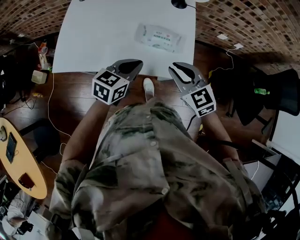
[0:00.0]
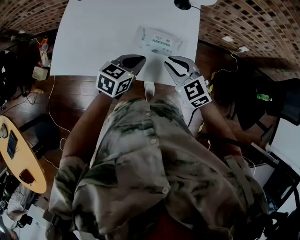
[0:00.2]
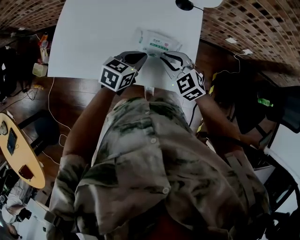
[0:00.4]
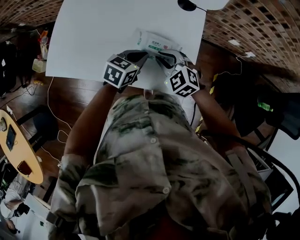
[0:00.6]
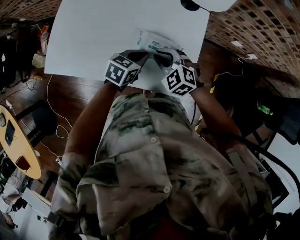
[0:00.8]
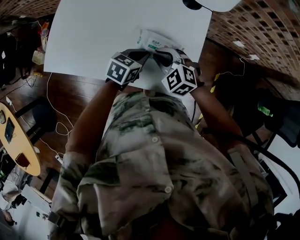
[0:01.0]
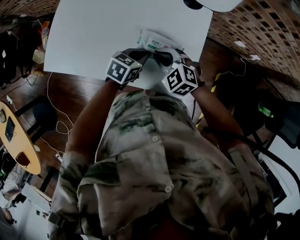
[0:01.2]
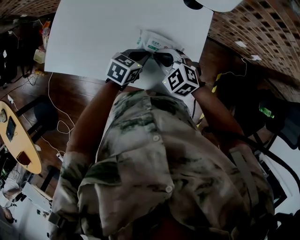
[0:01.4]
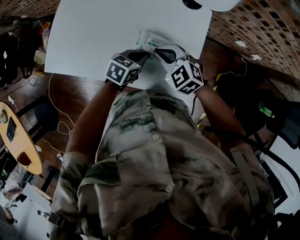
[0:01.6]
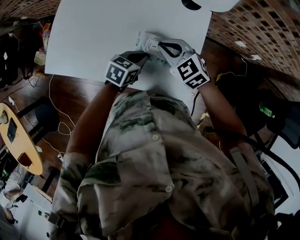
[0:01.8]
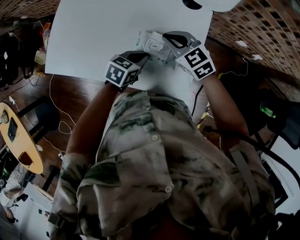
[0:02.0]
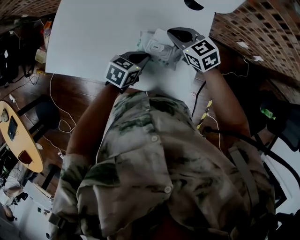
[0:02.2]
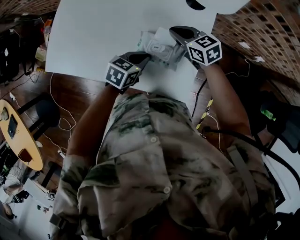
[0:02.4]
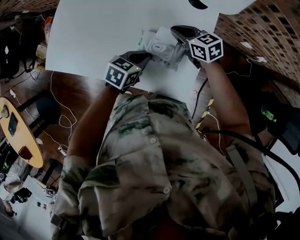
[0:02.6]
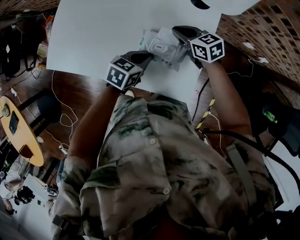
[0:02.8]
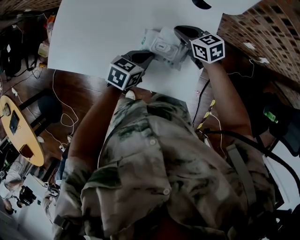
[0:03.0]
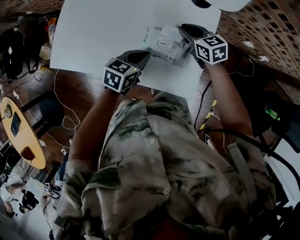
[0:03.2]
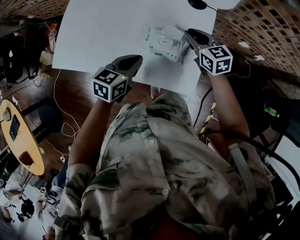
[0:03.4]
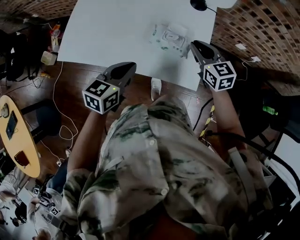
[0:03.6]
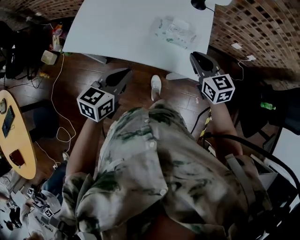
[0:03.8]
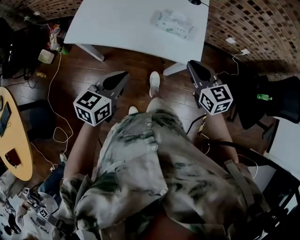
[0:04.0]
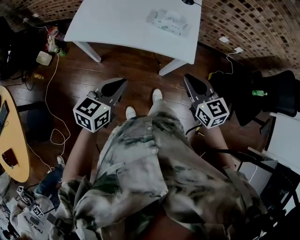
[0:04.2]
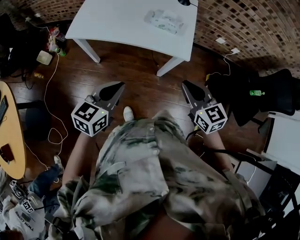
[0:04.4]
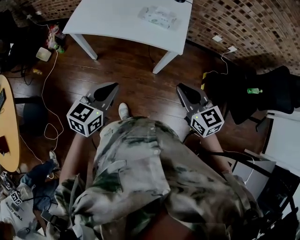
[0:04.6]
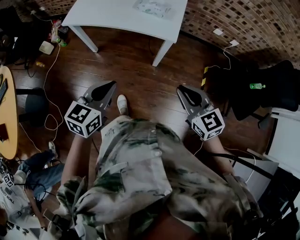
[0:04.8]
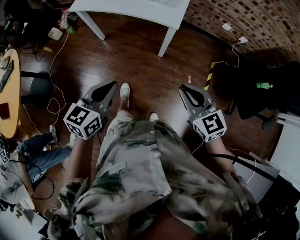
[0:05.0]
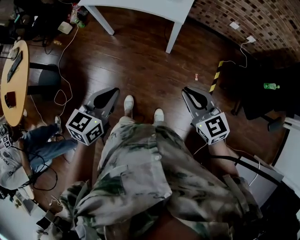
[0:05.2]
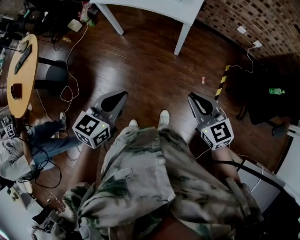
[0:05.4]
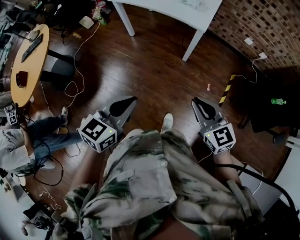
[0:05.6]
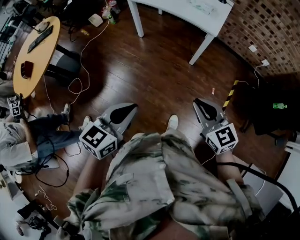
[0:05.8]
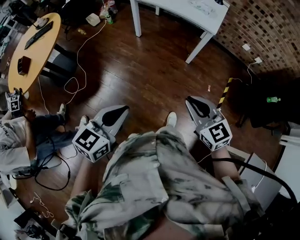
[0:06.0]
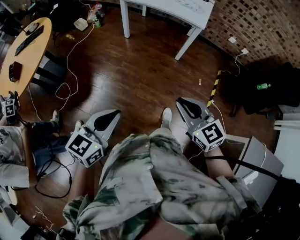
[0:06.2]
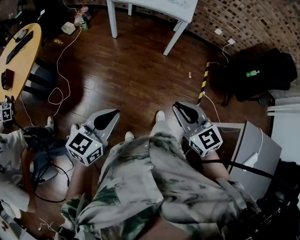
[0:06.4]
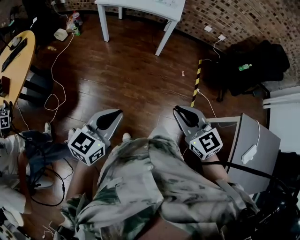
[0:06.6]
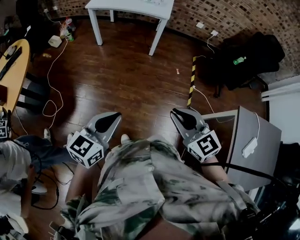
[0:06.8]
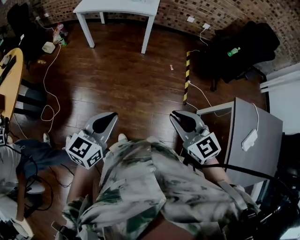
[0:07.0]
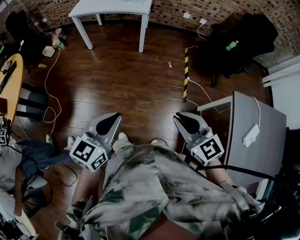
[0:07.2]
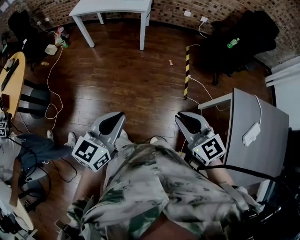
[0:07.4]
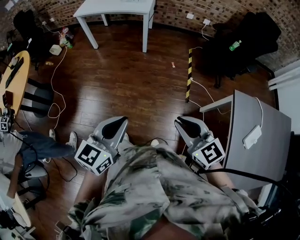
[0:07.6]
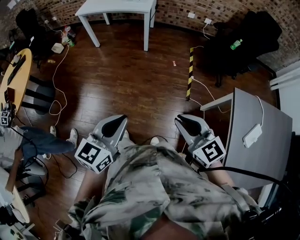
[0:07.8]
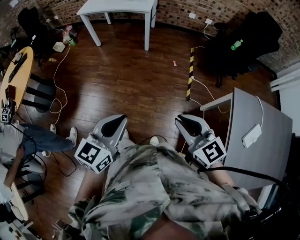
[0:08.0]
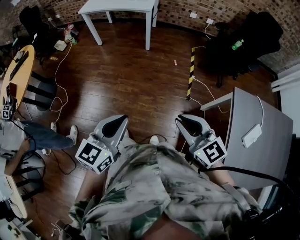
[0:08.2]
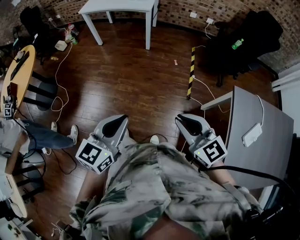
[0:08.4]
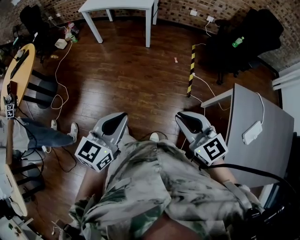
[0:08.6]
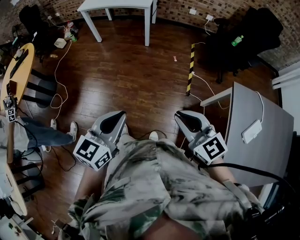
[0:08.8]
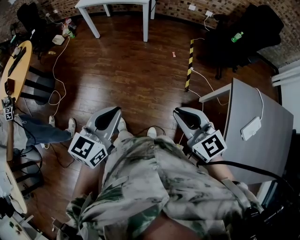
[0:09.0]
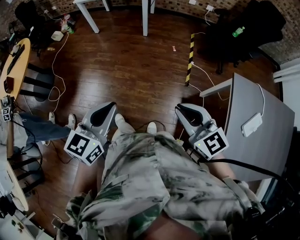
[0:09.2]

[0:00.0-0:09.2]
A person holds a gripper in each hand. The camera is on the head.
0:00.0 to 0:01.6: The left gripper heads downward and forward, covering roughly 20 cm; the right gripper moves forward and downward, roughly 20 cm, and rotates about 30 degrees.
0:01.6 to 0:03.0: The right gripper goes approximately 10 cm forward, and rotates approximately 40 degrees.
0:03.0 to 0:04.6: The pair of grippers is taken backward, roughly 50 cm. Both grippers move upward, approximately 20 cm. The right gripper swivels about 30 degrees; the left gripper changes its angle by about 30 degrees.
0:04.6 to 0:06.2: The pair of grippers is taken backward, about 50 cm.
0:06.2 to 0:07.6: The right gripper goes roughly 35 cm backward and to the right. Meanwhile the left gripper shifts approximately 30 cm to the right and backward.
0:07.6 to 0:09.2: The right gripper ends up roughly 5 cm from where it was.

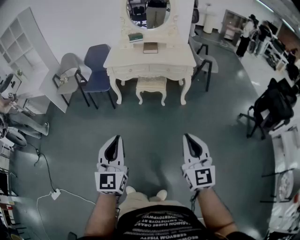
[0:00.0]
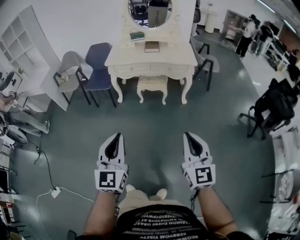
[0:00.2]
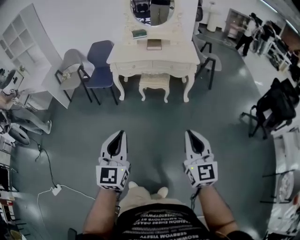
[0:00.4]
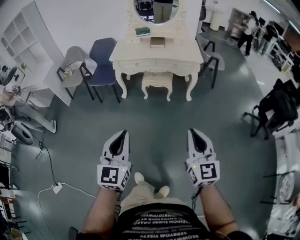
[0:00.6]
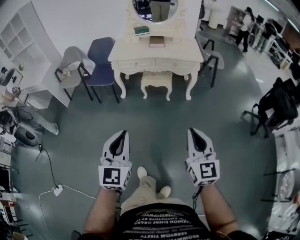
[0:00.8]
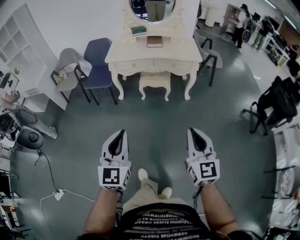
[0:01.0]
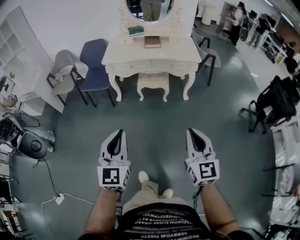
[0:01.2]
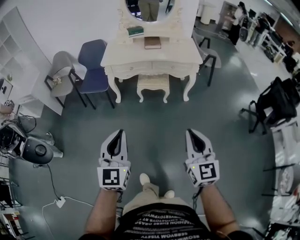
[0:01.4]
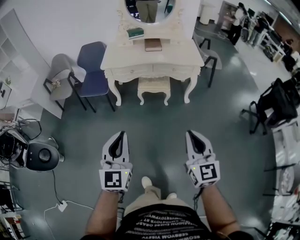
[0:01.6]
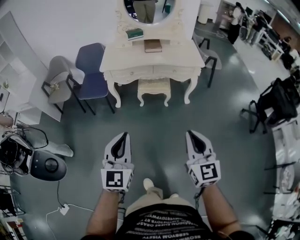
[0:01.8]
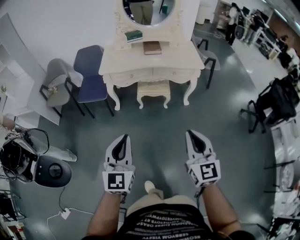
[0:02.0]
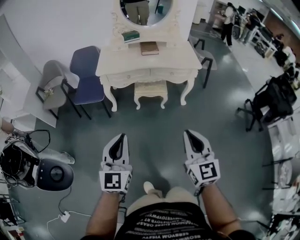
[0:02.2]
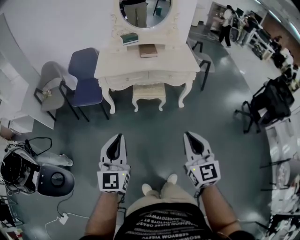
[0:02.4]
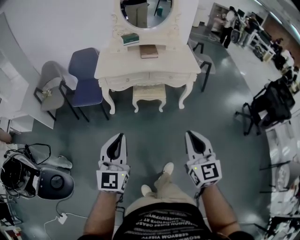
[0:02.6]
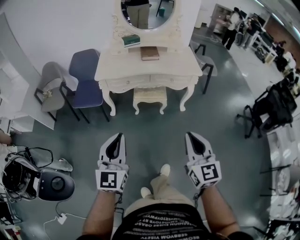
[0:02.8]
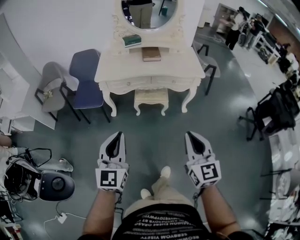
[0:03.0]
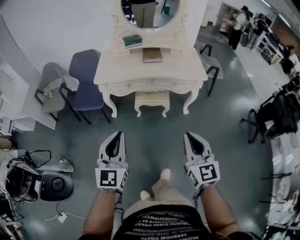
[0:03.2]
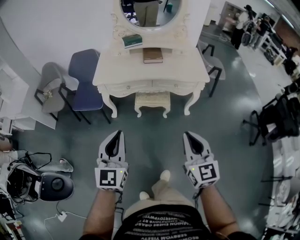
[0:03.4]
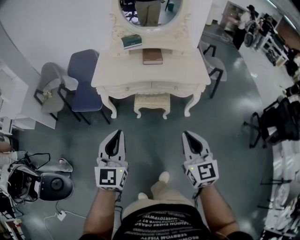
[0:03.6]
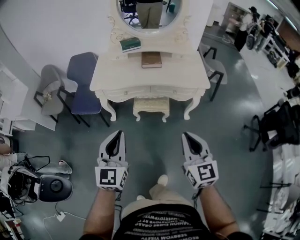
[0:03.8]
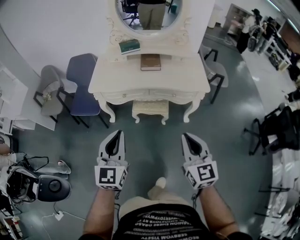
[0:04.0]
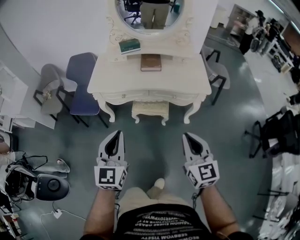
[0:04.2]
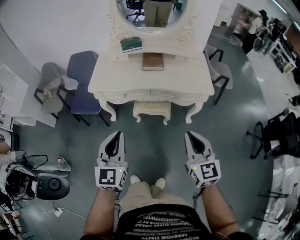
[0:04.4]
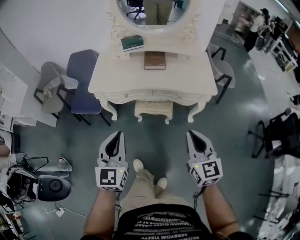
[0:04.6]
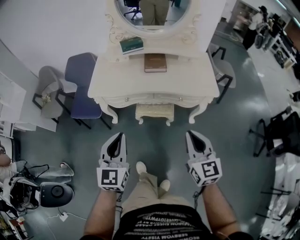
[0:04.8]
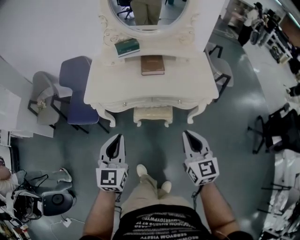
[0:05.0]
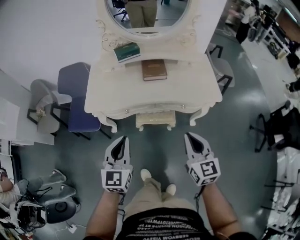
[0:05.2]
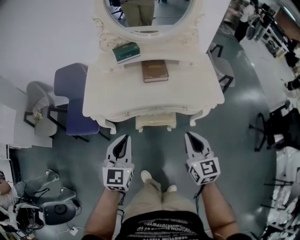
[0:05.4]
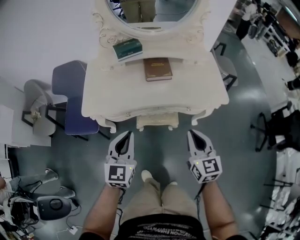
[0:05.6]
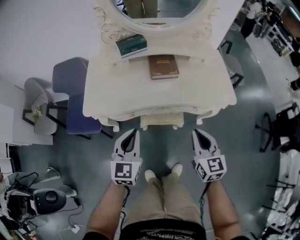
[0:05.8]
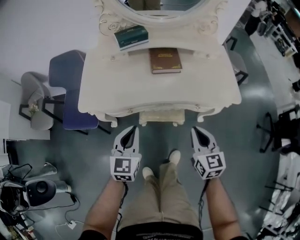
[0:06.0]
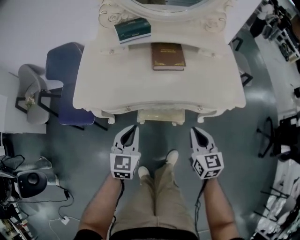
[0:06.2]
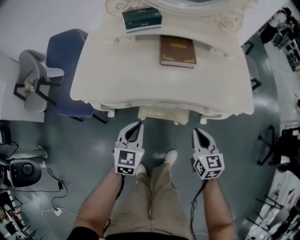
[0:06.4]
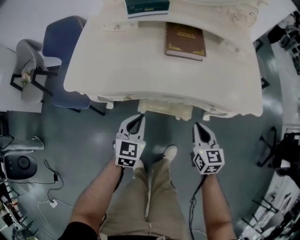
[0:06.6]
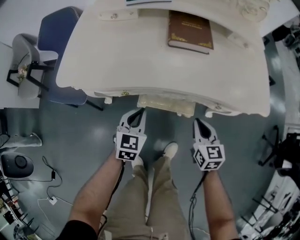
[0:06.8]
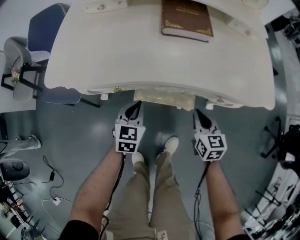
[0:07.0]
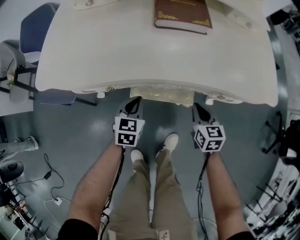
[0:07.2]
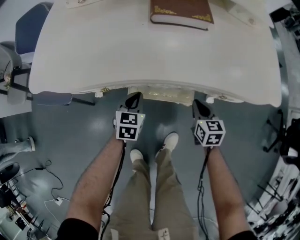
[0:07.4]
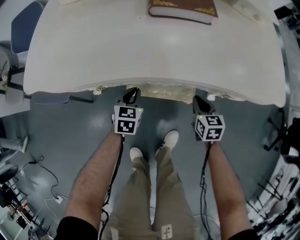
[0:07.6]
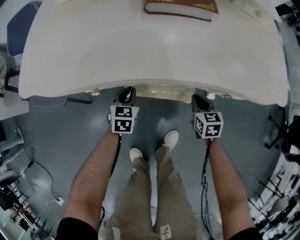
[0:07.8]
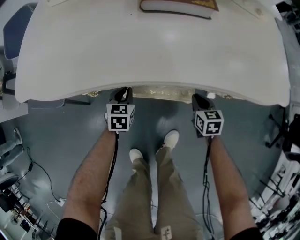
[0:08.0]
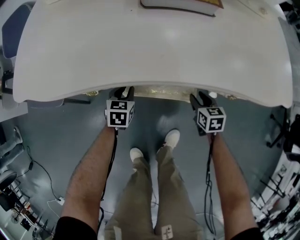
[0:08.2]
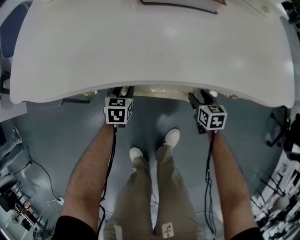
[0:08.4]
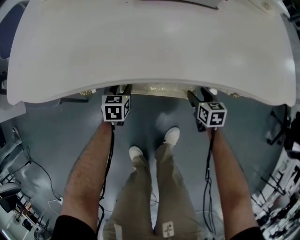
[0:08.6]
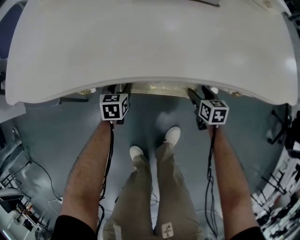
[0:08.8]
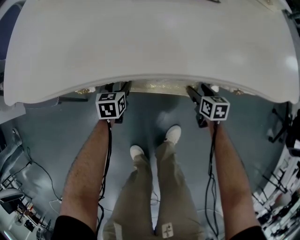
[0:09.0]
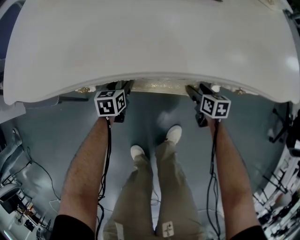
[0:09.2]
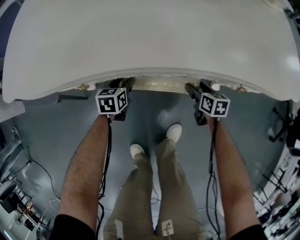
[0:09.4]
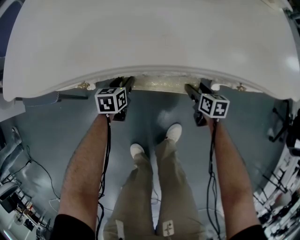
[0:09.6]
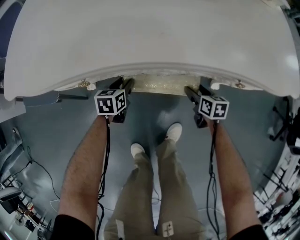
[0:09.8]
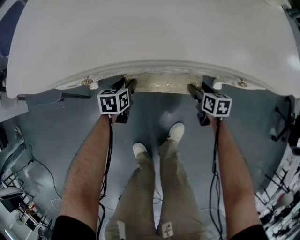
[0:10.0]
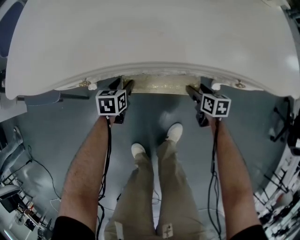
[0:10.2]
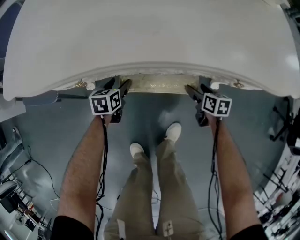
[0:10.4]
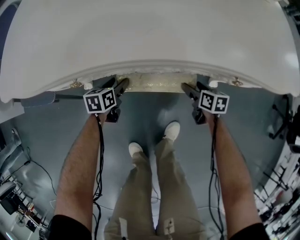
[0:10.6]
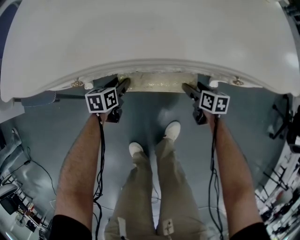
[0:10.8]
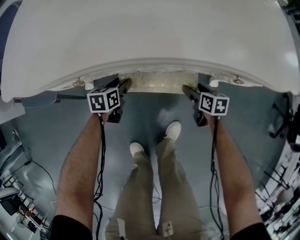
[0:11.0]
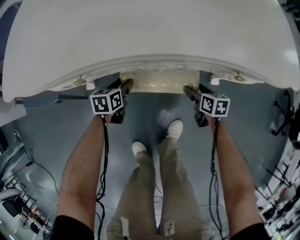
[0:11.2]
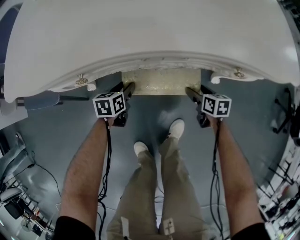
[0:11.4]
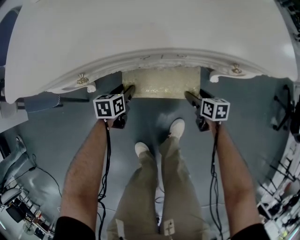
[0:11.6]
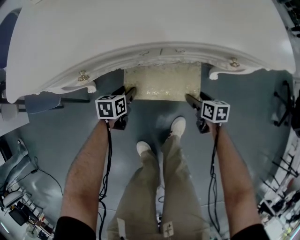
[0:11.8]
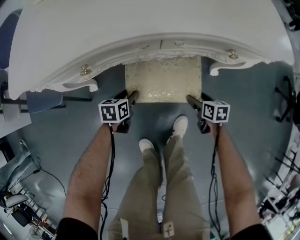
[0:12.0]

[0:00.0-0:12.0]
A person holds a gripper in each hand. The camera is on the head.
0:00.0 to 0:01.6: The two grippers go roughly 20 cm forward and to the left.
0:01.6 to 0:03.0: The grippers both shift forward by roughly 15 cm.
0:03.0 to 0:04.4: The two grippers go approximately 20 cm forward and to the right.
0:04.4 to 0:06.0: The grippers both shift forward and downward by roughly 30 cm.
0:06.0 to 0:07.6: The grippers both shift downward by some 40 cm. The right gripper changes its angle by some 20 degrees. The left gripper rotates about 20 degrees.
0:07.6 to 0:09.0: Both grippers travel together downward, some 10 cm. The left gripper opens up. Meanwhile the right gripper opens.
0:09.0 to 0:10.4: The grippers stay close to where they were, moving slightly.
0:10.4 to 0:12.0: Both grippers move backward, about 10 cm.

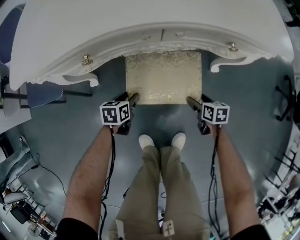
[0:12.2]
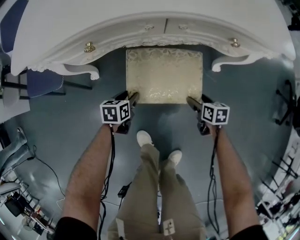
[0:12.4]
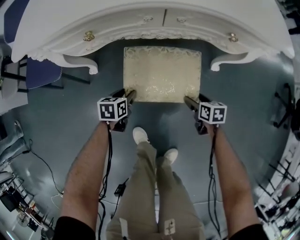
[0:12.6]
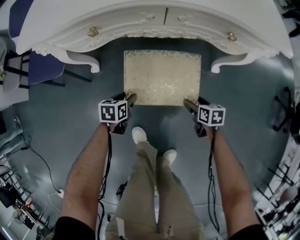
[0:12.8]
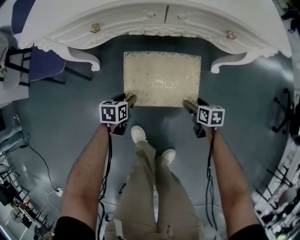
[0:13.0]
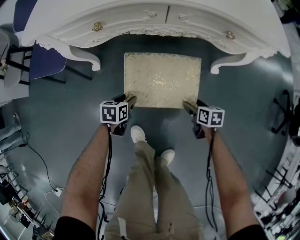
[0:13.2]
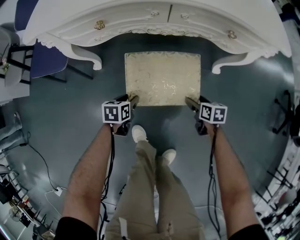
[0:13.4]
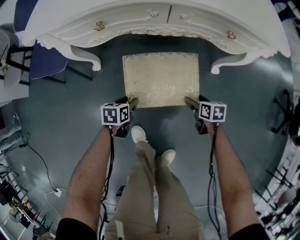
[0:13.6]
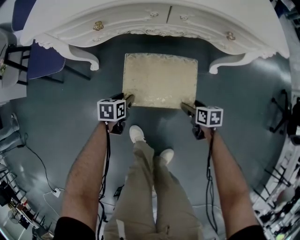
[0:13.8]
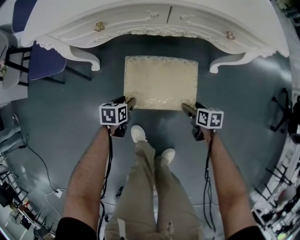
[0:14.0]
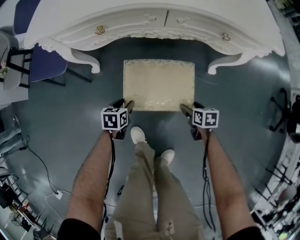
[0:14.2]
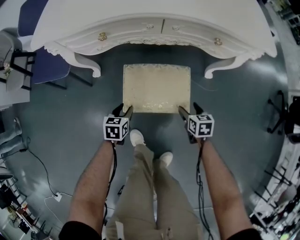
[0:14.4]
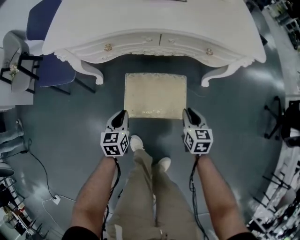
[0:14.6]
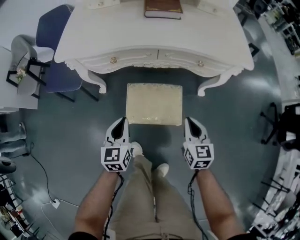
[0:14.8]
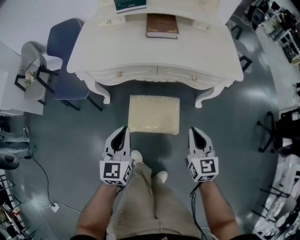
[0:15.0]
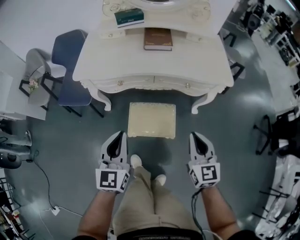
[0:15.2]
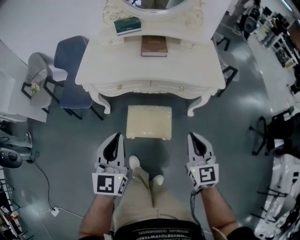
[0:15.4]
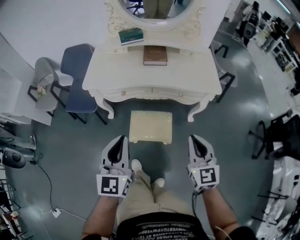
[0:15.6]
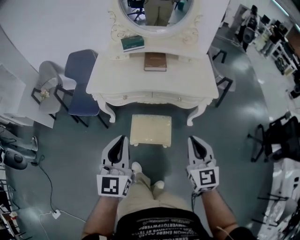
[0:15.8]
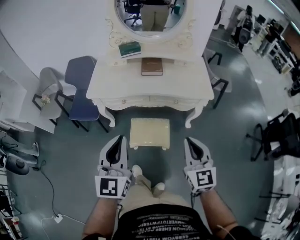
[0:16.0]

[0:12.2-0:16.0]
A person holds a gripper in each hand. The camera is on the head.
0:12.2 to 0:13.4: The right gripper heads backward, covering some 5 cm; the left gripper moves backward, approximately 10 cm.
0:13.4 to 0:14.8: Both grippers travel together upward, approximately 30 cm. The right gripper changes its angle by roughly 40 degrees, and closes its fingers, while the left gripper changes its angle by roughly 40 degrees, and closes.
0:14.8 to 0:16.0: Both grippers travel together upward, roughly 40 cm. The left gripper turns by approximately 30 degrees. The right gripper changes its angle by roughly 20 degrees.
